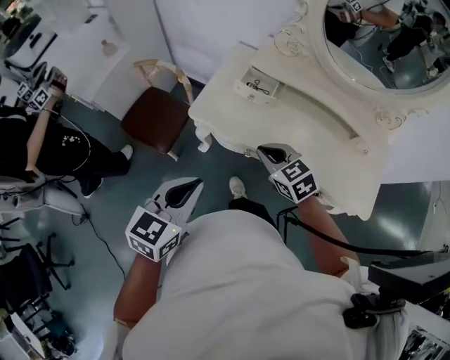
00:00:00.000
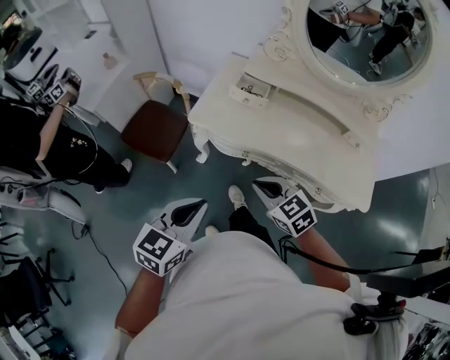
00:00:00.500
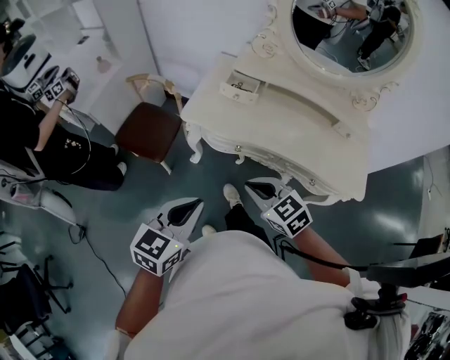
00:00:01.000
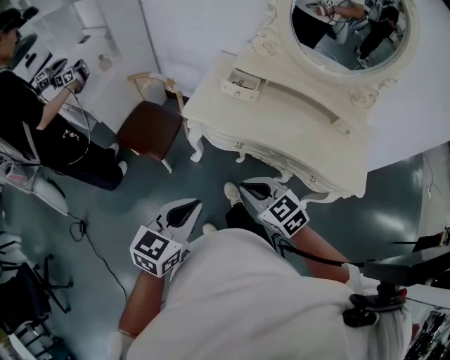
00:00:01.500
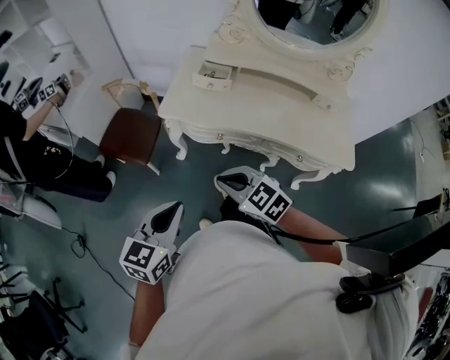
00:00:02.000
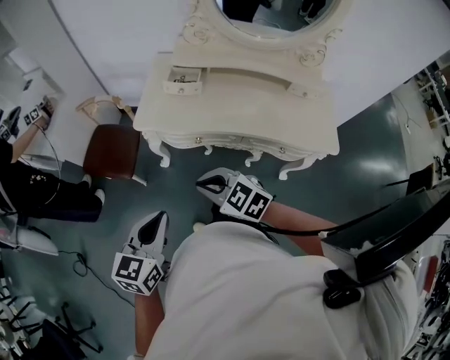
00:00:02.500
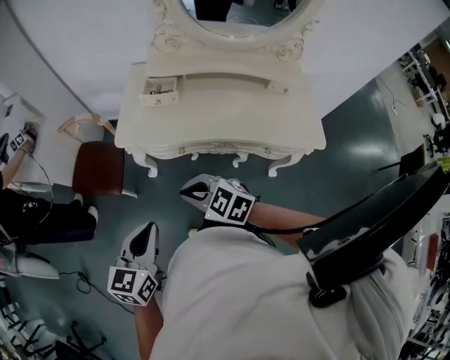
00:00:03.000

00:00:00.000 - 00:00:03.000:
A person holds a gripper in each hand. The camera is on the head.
00:00:00.000 - 00:00:01.500: The two grippers go approximately 20 cm backward.
00:00:01.500 - 00:00:03.000: There are only small adjustments of the grippers.

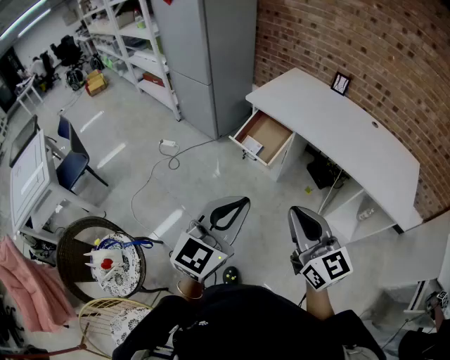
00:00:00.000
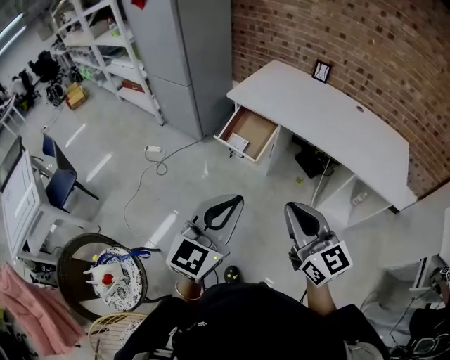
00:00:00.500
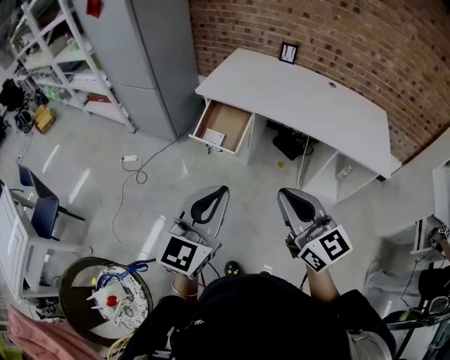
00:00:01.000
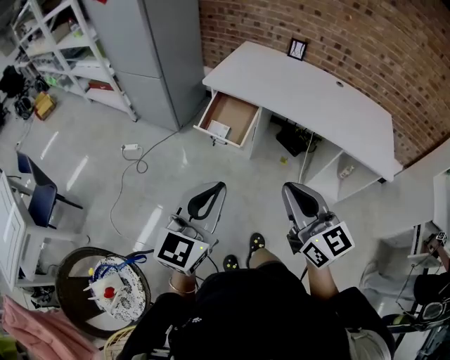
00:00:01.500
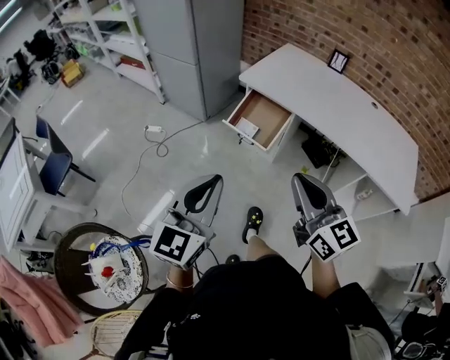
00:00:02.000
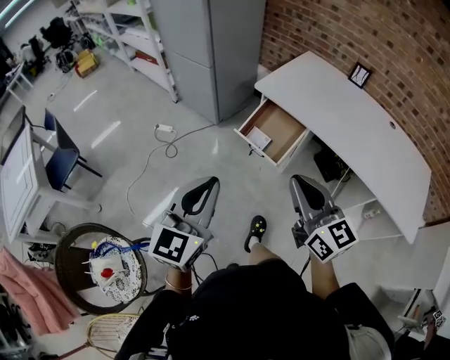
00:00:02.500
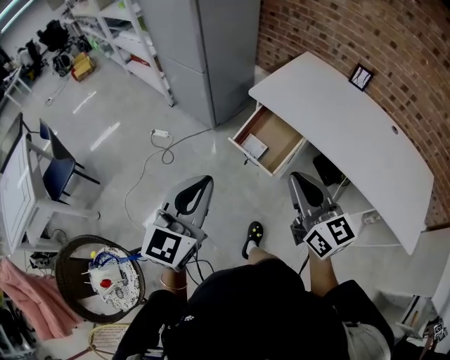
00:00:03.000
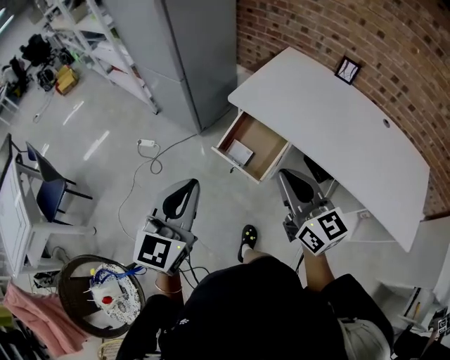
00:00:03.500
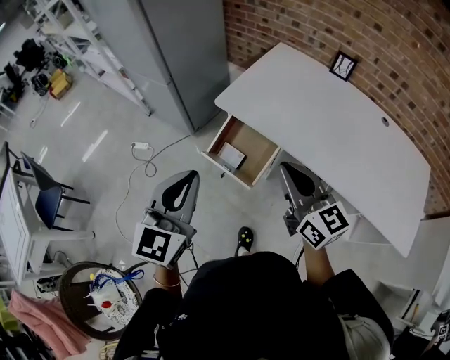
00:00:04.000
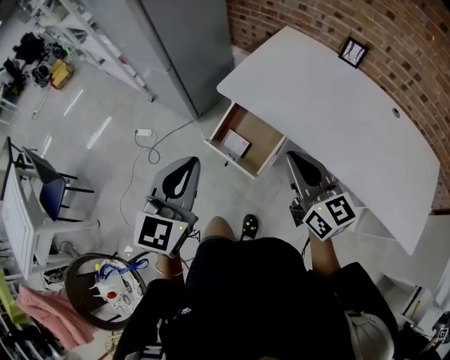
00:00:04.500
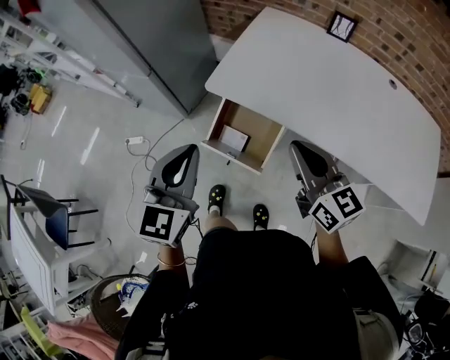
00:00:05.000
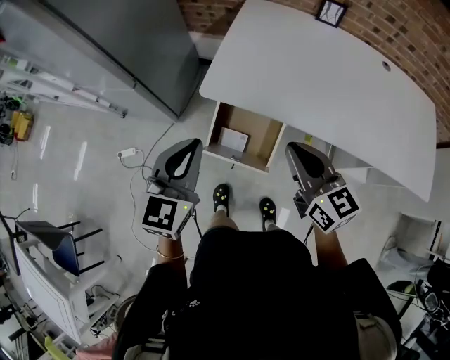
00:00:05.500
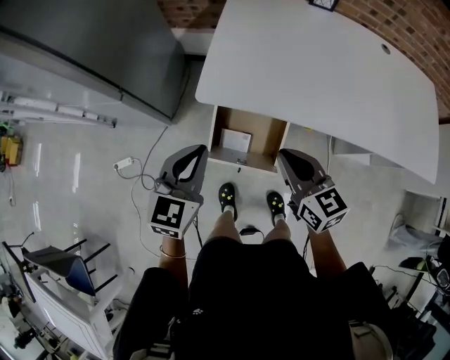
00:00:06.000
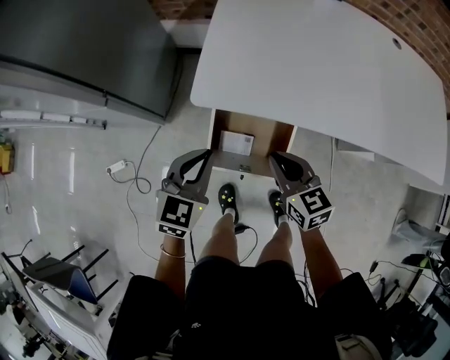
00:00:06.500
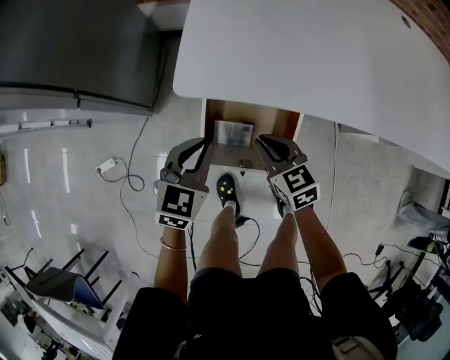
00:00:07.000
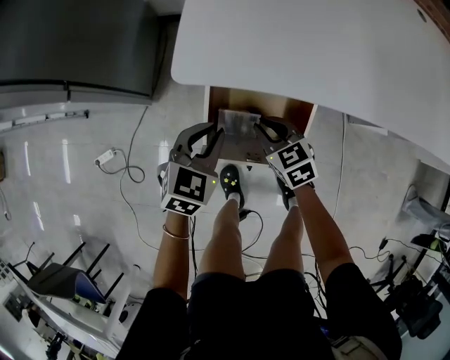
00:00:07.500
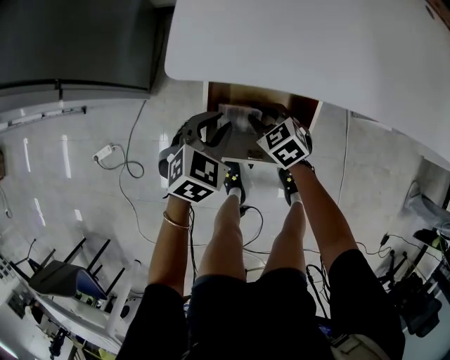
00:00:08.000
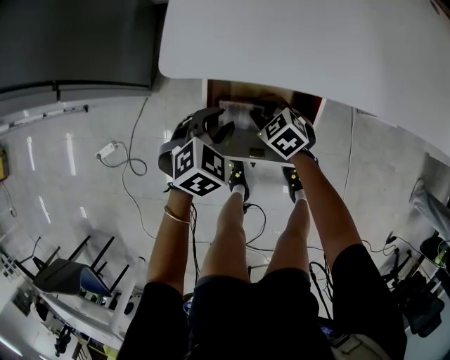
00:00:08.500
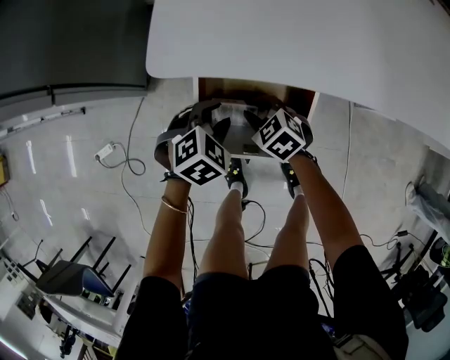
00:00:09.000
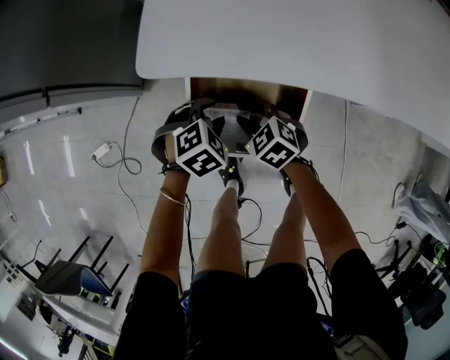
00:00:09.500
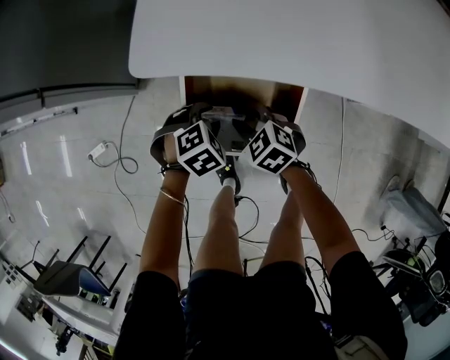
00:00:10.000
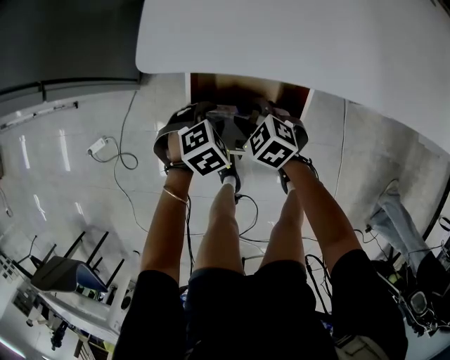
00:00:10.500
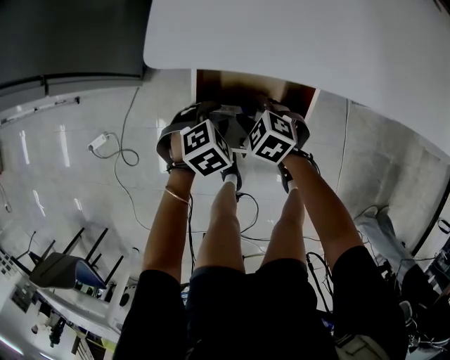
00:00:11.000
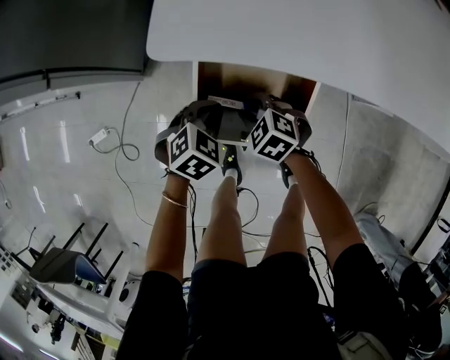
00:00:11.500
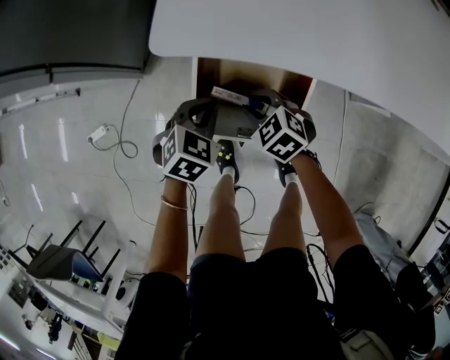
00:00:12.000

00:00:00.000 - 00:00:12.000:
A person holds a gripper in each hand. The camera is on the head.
00:00:00.000 - 00:00:02.000: The left gripper travels to the left and forward by approximately 15 cm; the right gripper is displaced forward and to the left by roughly 10 cm.
00:00:02.000 - 00:00:04.000: The two grippers go roughly 30 cm forward.
00:00:04.000 - 00:00:06.000: The right gripper moves downward, forward and to the left, some 20 cm, and changes its angle by approximately 30 degrees; the left gripper heads forward and downward, covering some 30 cm, and swivels approximately 30 degrees.
00:00:06.000 - 00:00:08.000: Both grippers travel together downward, about 35 cm. The right gripper tilts its fingers approximately 30 degrees downward, and opens its fingers. Meanwhile the left gripper changes its angle by some 30 degrees, and opens.
00:00:08.000 - 00:00:10.000: The left gripper is displaced downward by about 10 cm, and rotates about 30 degrees.
00:00:10.000 - 00:00:12.000: The left gripper travels upward by approximately 5 cm, rotates about 30 degrees, and closes its fingers.

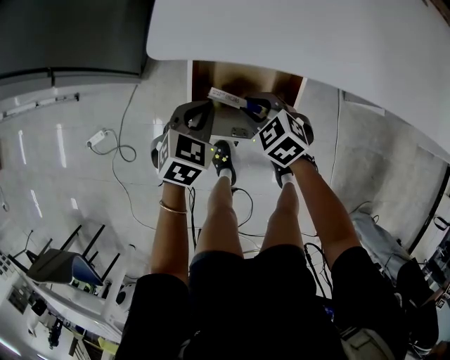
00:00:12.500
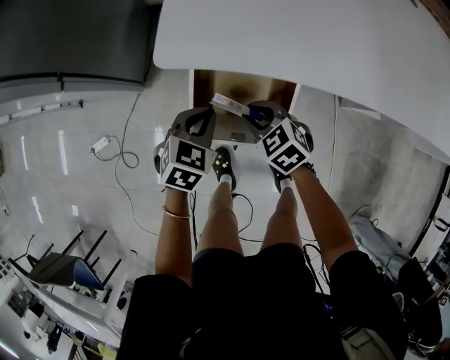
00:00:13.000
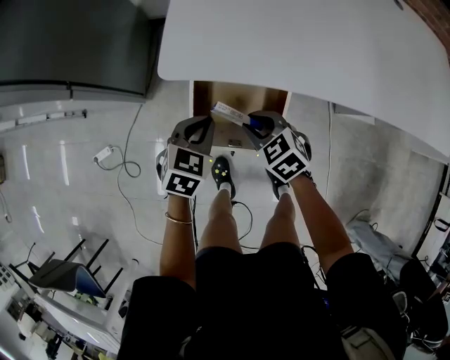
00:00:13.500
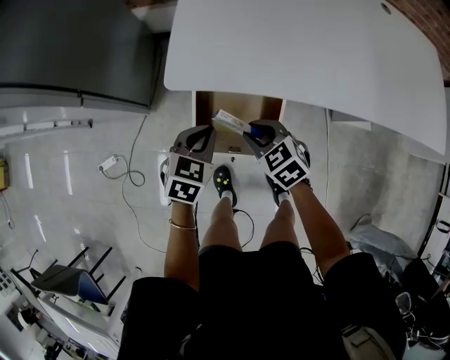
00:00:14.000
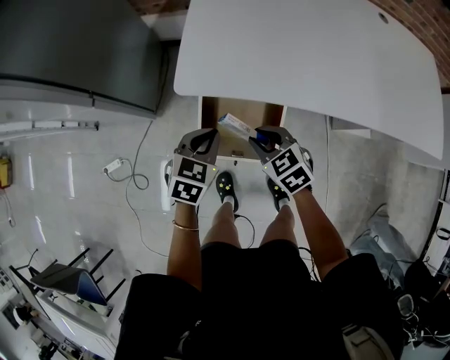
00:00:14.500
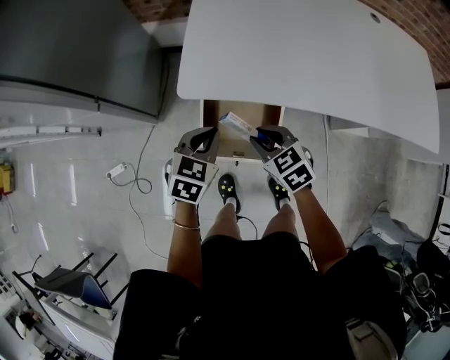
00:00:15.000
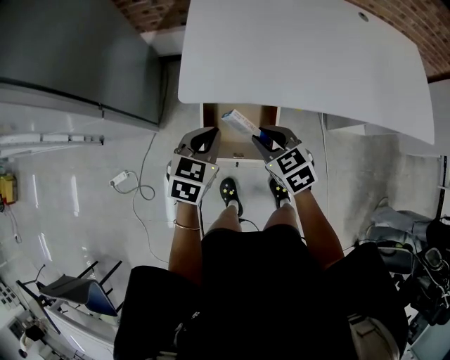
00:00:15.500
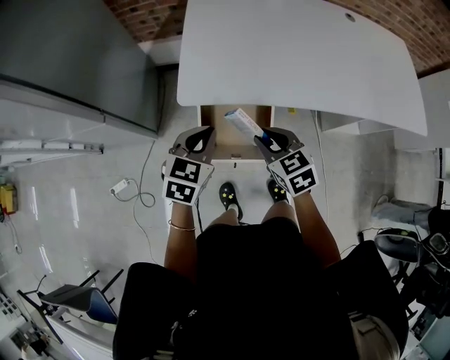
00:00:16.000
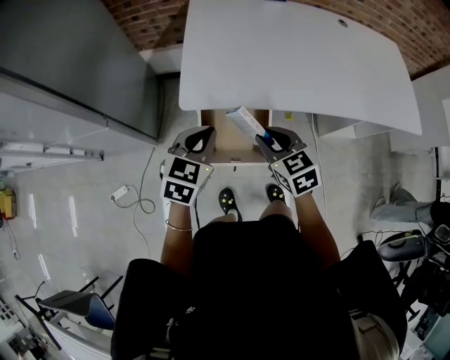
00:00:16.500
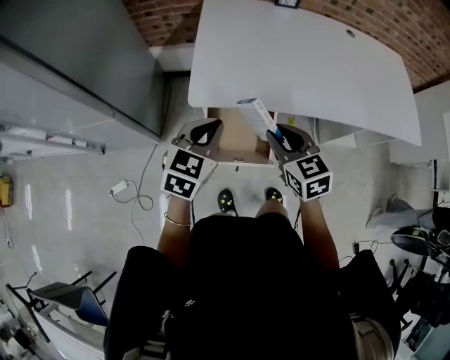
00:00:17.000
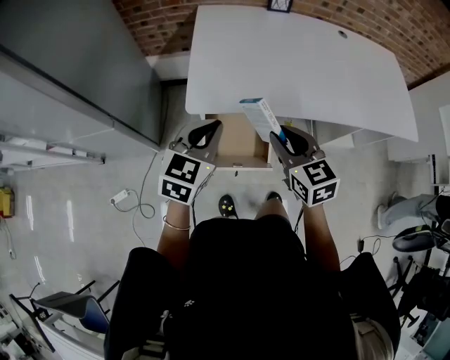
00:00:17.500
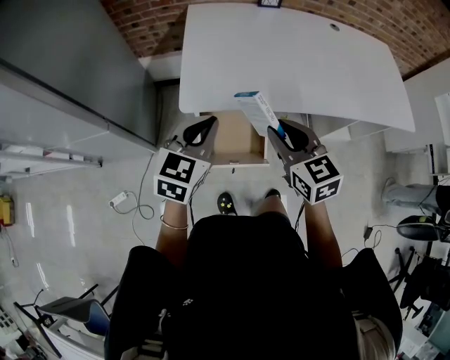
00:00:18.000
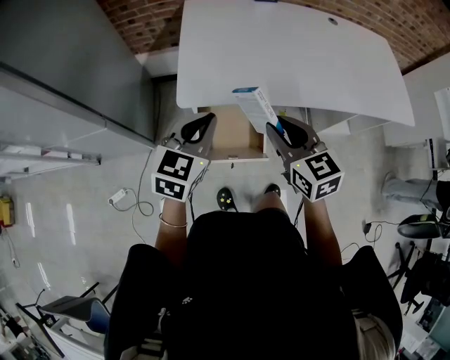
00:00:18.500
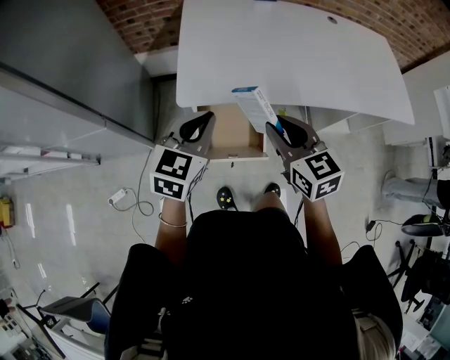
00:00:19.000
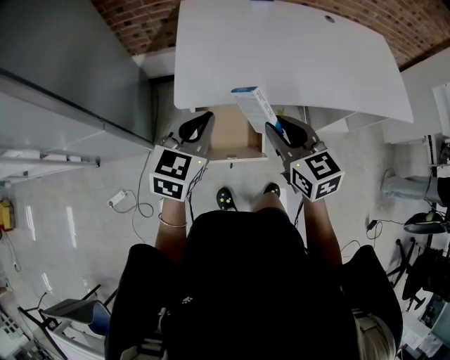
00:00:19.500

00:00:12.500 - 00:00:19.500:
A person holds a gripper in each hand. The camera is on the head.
00:00:12.500 - 00:00:14.500: The two grippers go about 15 cm upward.
00:00:14.500 - 00:00:16.000: The grippers both shift upward by about 10 cm.
00:00:16.000 - 00:00:17.500: Both grippers move upward, some 10 cm.
00:00:17.500 - 00:00:19.500: The grippers move only a little.

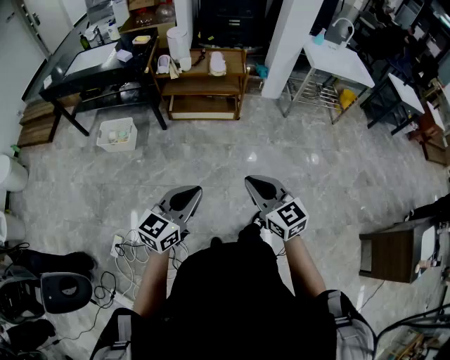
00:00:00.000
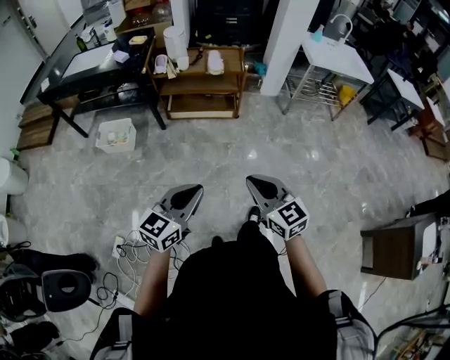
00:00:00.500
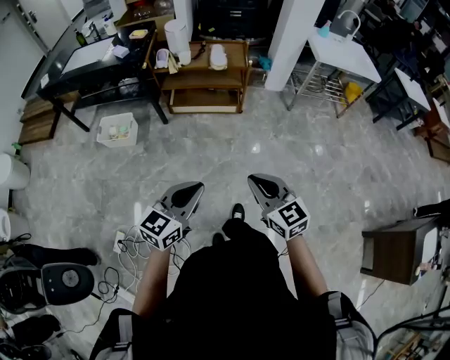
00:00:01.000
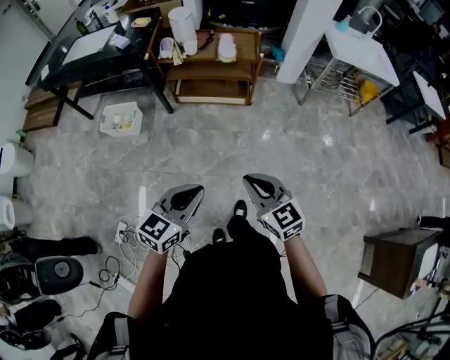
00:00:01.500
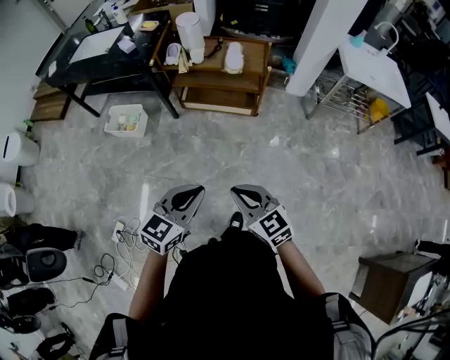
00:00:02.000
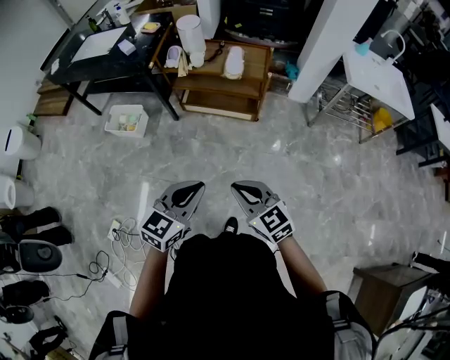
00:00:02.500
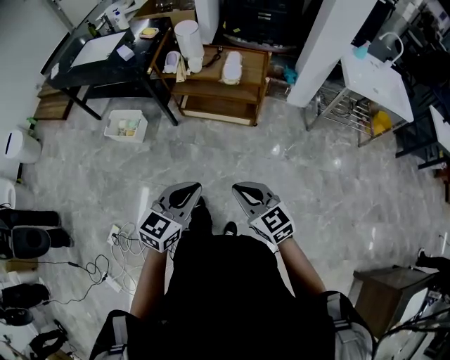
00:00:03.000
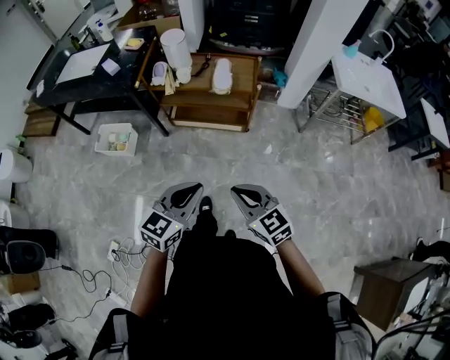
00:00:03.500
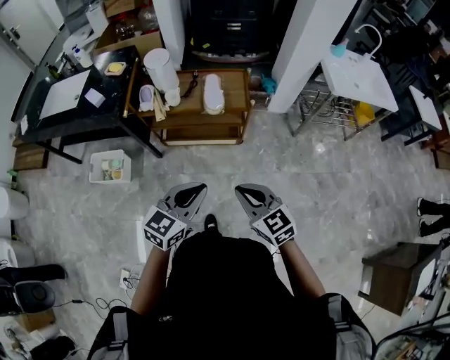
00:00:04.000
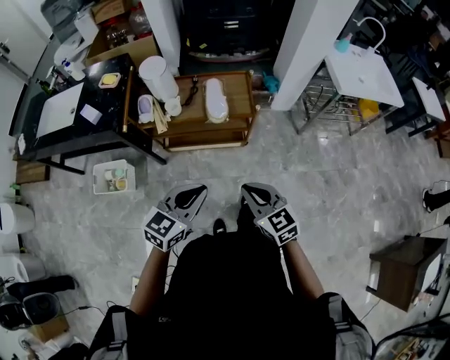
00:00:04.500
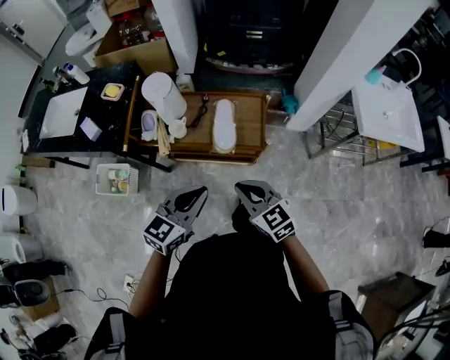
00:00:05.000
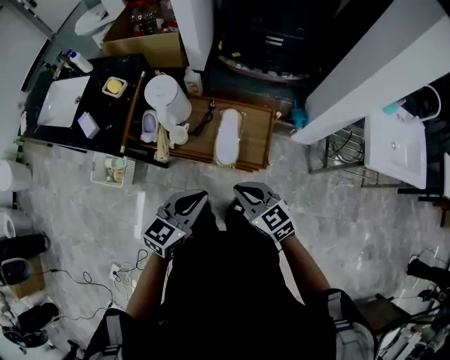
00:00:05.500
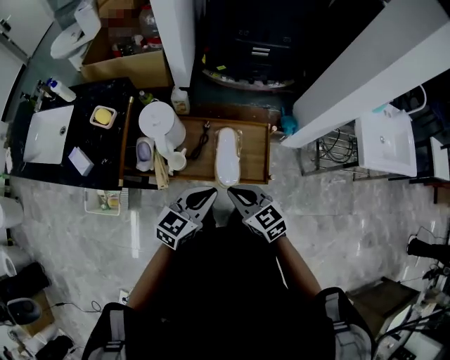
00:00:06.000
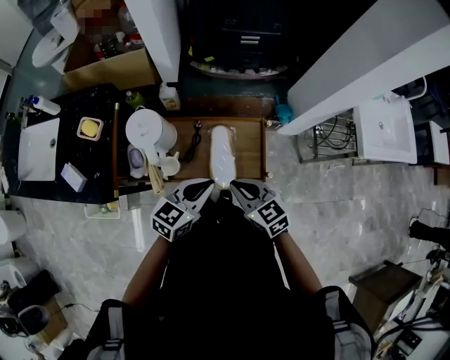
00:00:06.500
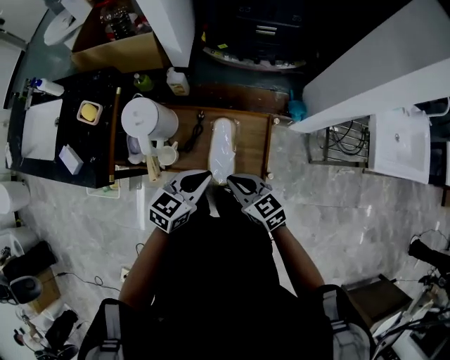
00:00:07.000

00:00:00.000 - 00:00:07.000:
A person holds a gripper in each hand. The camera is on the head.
00:00:00.000 - 00:00:02.000: The right gripper travels forward and downward by approximately 15 cm. Meanwhile the left gripper moves forward, some 15 cm.
00:00:02.000 - 00:00:03.500: The two grippers go roughly 10 cm forward.
00:00:03.500 - 00:00:05.000: The grippers both shift forward by some 35 cm.
00:00:05.000 - 00:00:07.000: The grippers both shift forward by roughly 25 cm.
